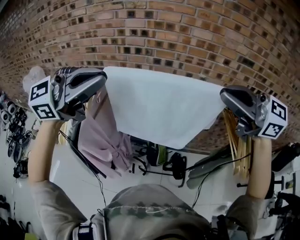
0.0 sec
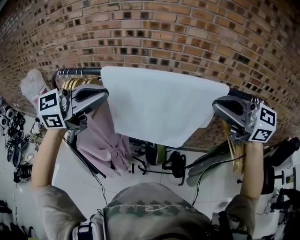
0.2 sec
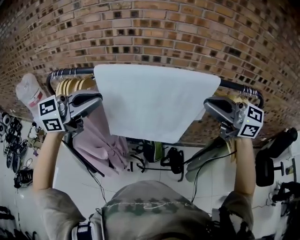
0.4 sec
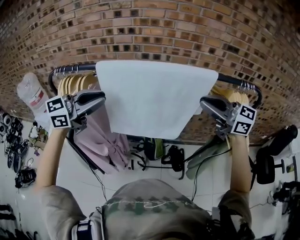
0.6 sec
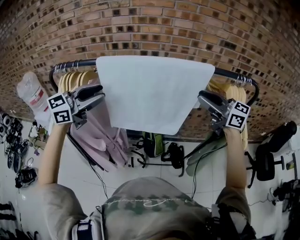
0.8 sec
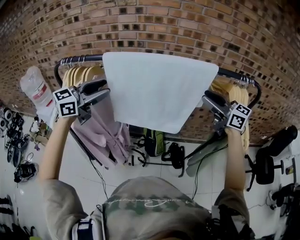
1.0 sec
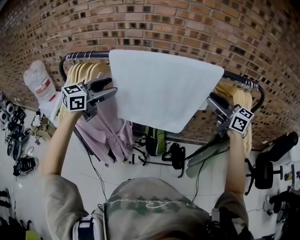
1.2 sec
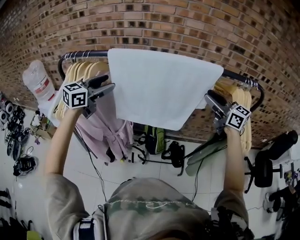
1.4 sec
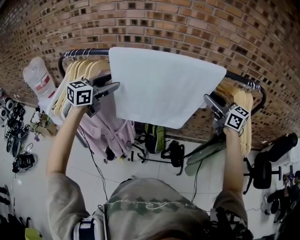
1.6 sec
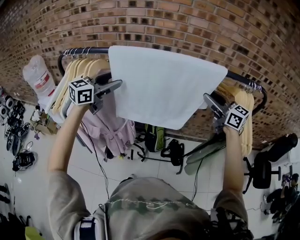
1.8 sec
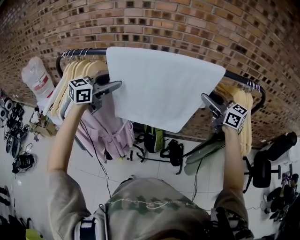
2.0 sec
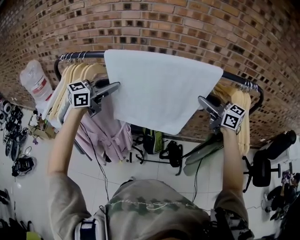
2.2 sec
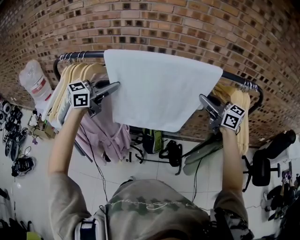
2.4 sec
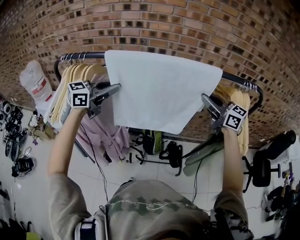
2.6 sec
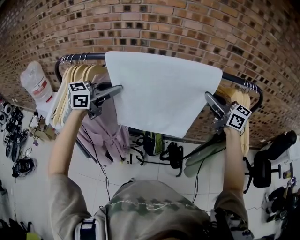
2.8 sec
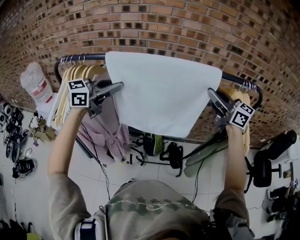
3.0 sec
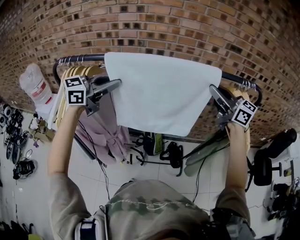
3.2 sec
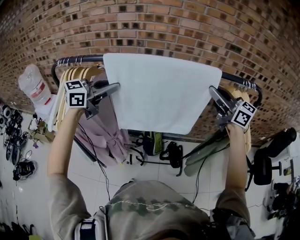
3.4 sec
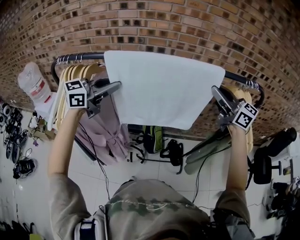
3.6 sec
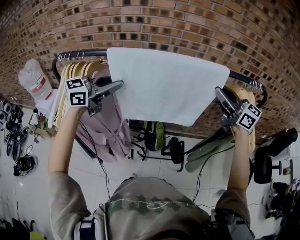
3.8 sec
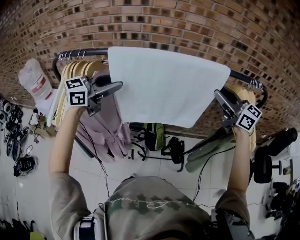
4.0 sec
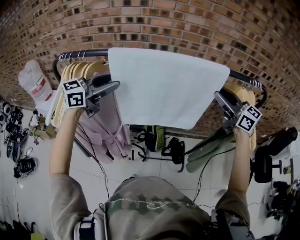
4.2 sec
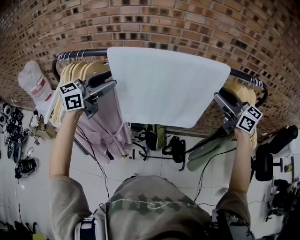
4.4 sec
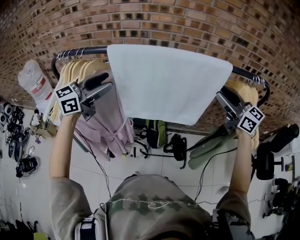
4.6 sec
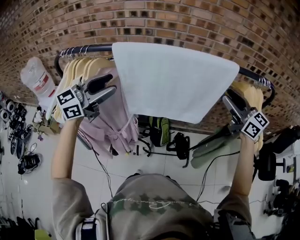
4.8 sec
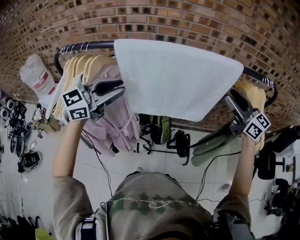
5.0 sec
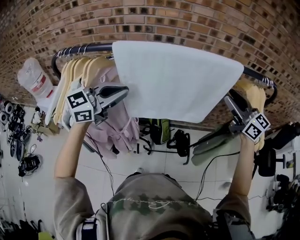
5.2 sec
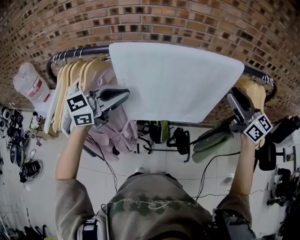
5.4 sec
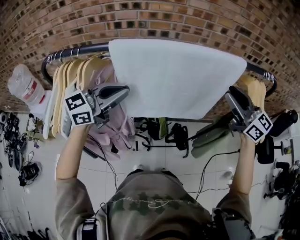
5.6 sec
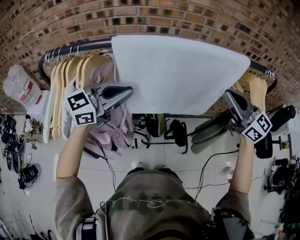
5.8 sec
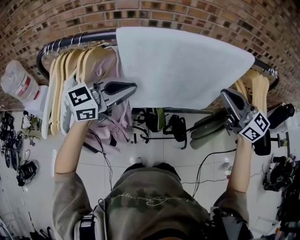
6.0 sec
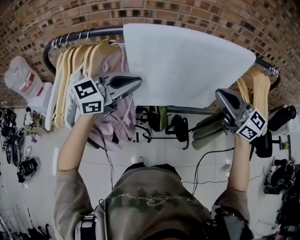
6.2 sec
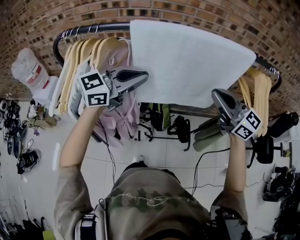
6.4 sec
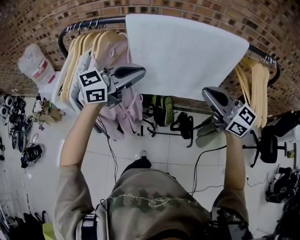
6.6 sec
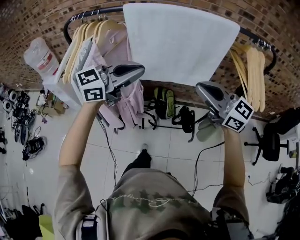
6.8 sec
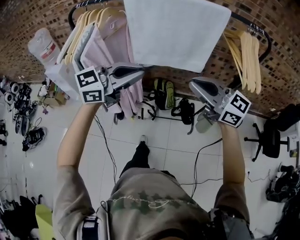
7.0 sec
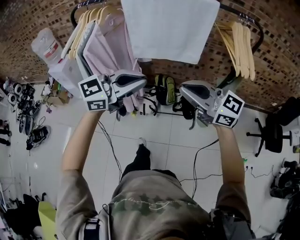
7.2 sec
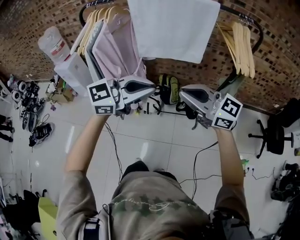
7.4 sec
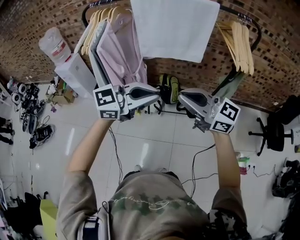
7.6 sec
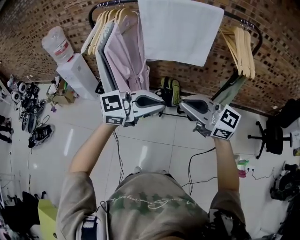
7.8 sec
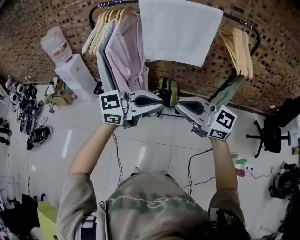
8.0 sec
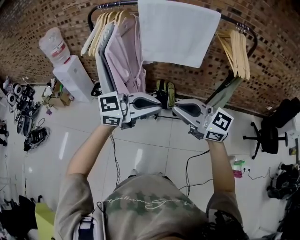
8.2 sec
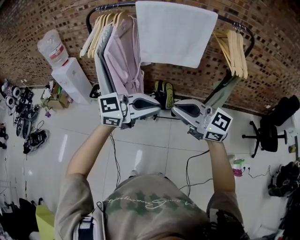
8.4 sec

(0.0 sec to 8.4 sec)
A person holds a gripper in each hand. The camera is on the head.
0.0 sec - 1.4 sec: Both grippers move downward, roughly 20 cm. The left gripper rotates about 30 degrees, and opens up; the right gripper changes its angle by some 30 degrees.
1.4 sec - 2.8 sec: The left gripper travels to the right by approximately 5 cm, and closes up.
2.8 sec - 4.2 sec: The left gripper opens up.
4.2 sec - 5.6 sec: The left gripper closes.
5.6 sec - 7.0 sec: The right gripper ends up about 25 cm from where it was, and turns by about 30 degrees; the left gripper changes place by roughly 25 cm.
7.0 sec - 8.4 sec: The left gripper moves some 20 cm. Meanwhile the right gripper moves approximately 20 cm.

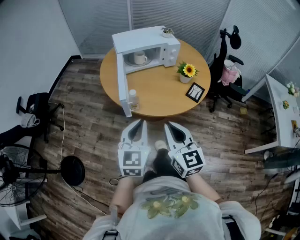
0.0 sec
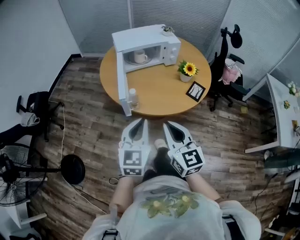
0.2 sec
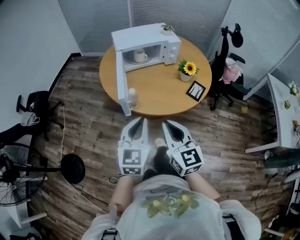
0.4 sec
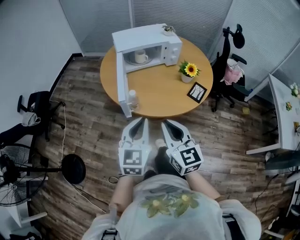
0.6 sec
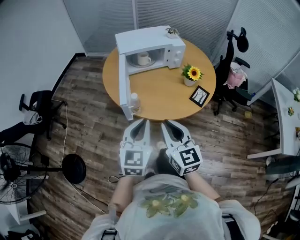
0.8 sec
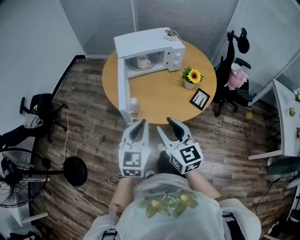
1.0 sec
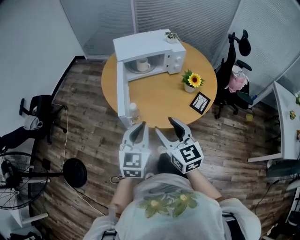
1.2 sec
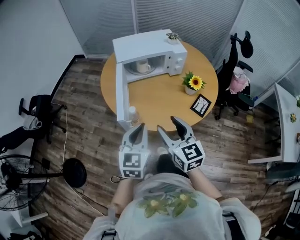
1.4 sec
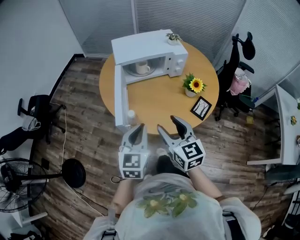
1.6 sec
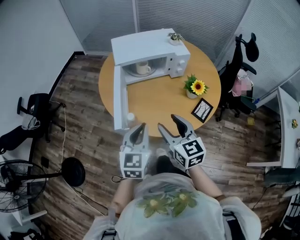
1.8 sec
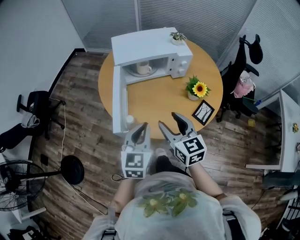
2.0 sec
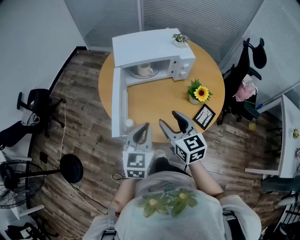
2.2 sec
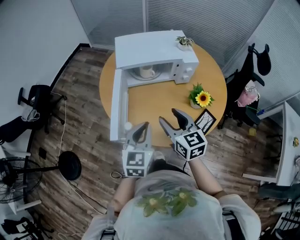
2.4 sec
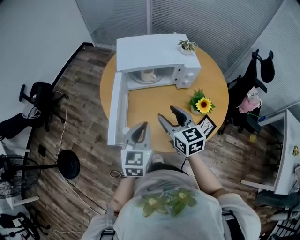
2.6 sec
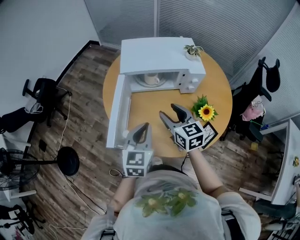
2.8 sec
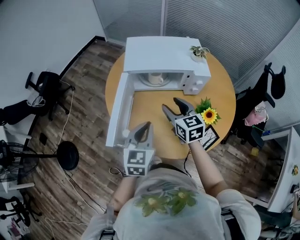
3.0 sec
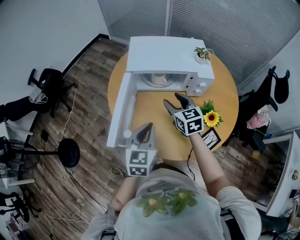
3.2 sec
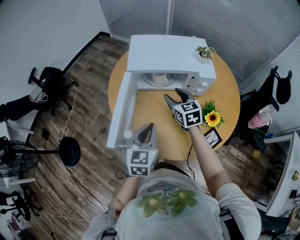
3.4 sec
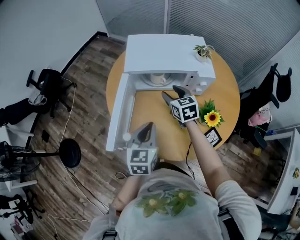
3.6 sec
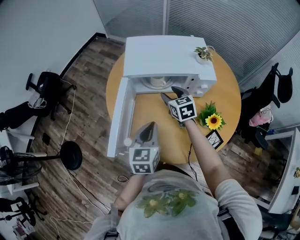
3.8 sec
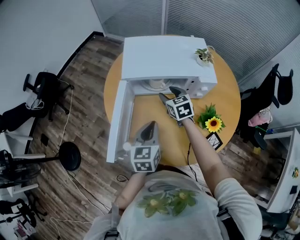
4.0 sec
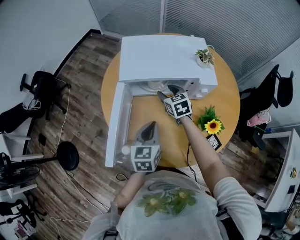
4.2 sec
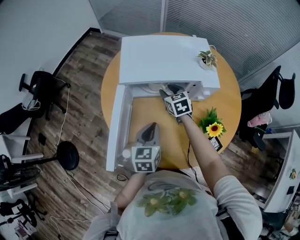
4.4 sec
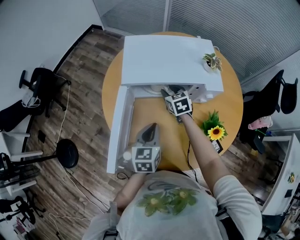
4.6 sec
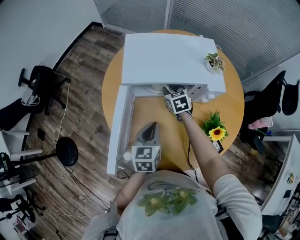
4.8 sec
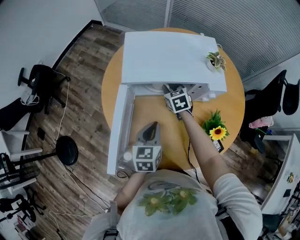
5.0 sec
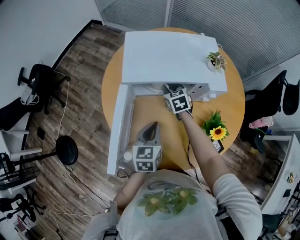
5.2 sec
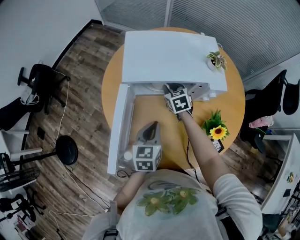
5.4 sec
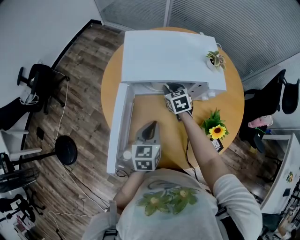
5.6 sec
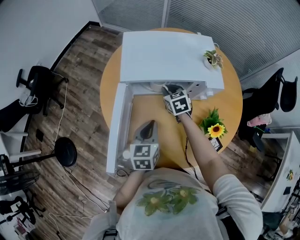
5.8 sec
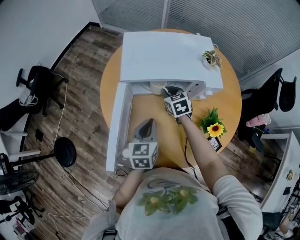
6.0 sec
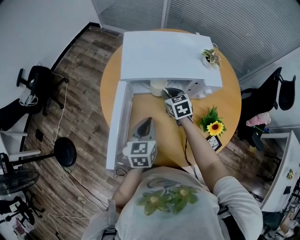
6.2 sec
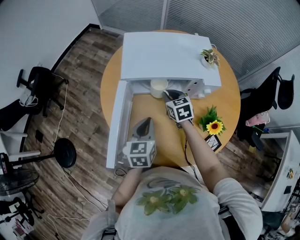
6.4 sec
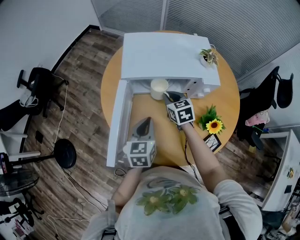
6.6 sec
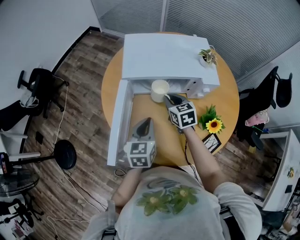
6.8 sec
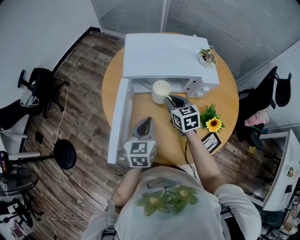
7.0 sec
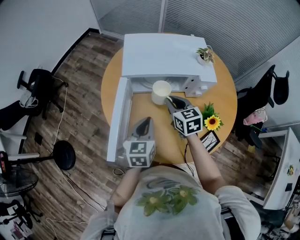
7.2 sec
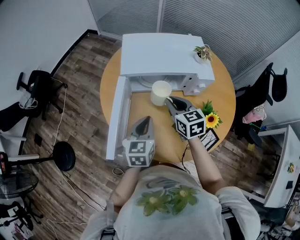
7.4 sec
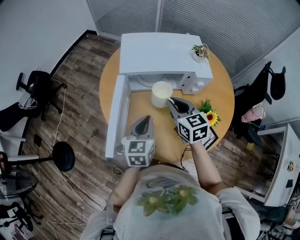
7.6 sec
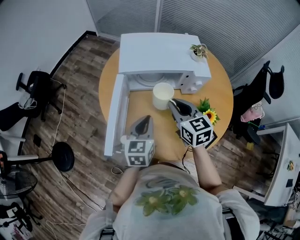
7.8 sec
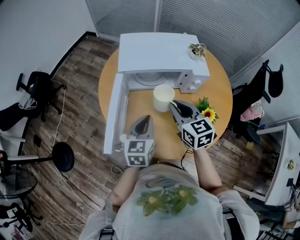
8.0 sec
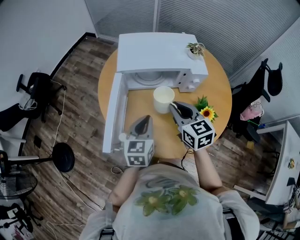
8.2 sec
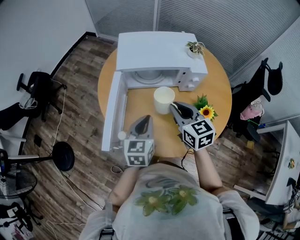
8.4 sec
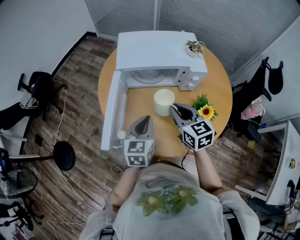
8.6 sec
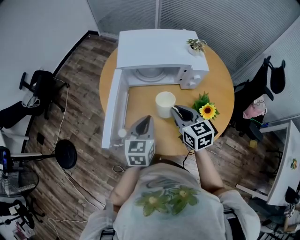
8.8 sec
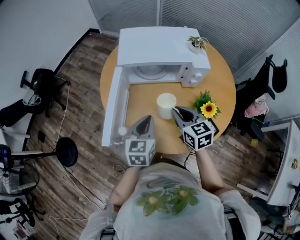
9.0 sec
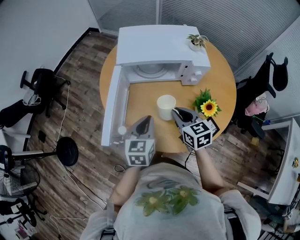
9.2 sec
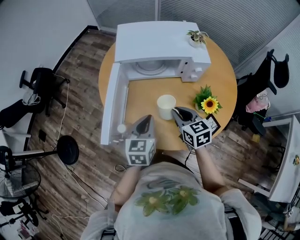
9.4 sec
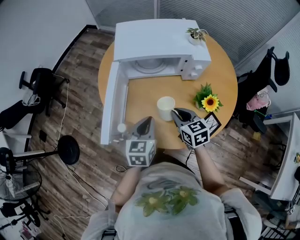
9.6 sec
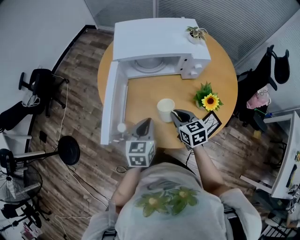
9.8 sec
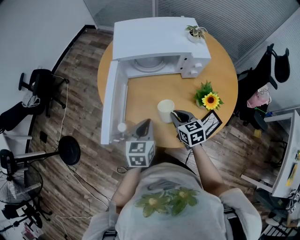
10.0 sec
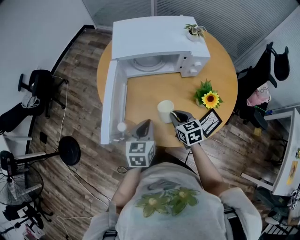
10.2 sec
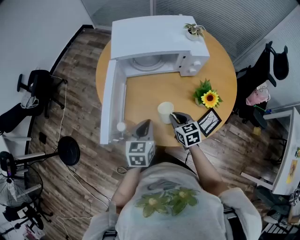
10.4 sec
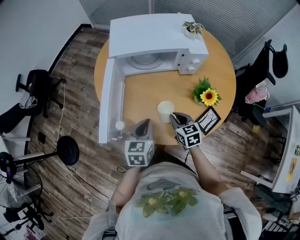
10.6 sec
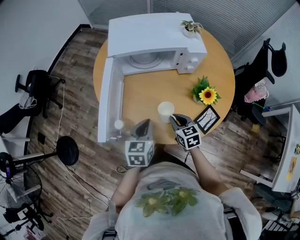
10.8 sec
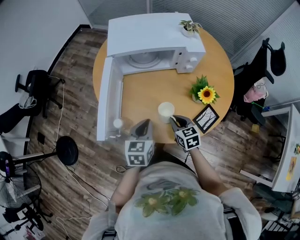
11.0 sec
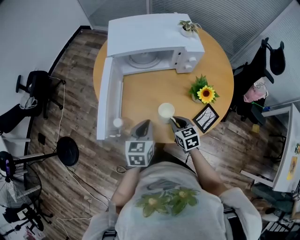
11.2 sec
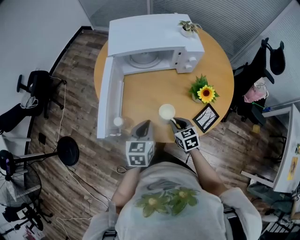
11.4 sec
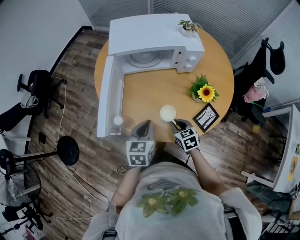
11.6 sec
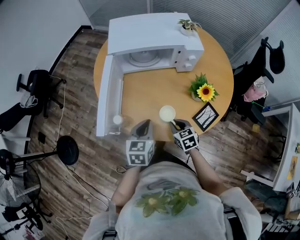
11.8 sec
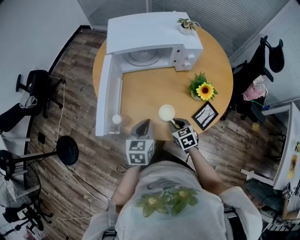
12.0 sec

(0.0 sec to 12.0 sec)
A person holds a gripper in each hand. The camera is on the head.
0.0 sec - 1.6 sec: The grippers both shift forward by about 15 cm. The right gripper opens.
1.6 sec - 3.0 sec: The left gripper heads forward and to the right, covering approximately 15 cm. Meanwhile the right gripper travels forward by some 25 cm.
3.0 sec - 4.4 sec: The left gripper moves forward and downward, approximately 10 cm. Meanwhile the right gripper heads forward and downward, covering roughly 20 cm.
4.4 sec - 6.0 sec: The right gripper closes.
6.0 sec - 7.6 sec: The right gripper travels backward and upward by roughly 20 cm. The left gripper changes place by roughly 5 cm.
7.6 sec - 9.0 sec: The right gripper travels backward by some 10 cm.
9.0 sec - 10.4 sec: The left gripper travels downward by approximately 5 cm, while the right gripper moves downward, some 15 cm.
10.4 sec - 12.0 sec: The right gripper shifts roughly 5 cm backward.

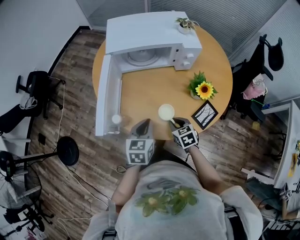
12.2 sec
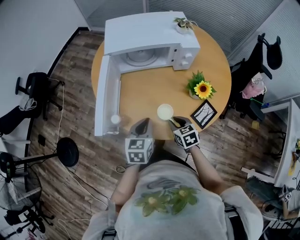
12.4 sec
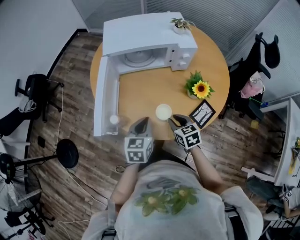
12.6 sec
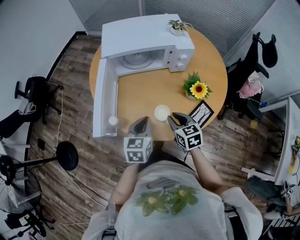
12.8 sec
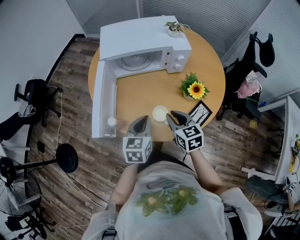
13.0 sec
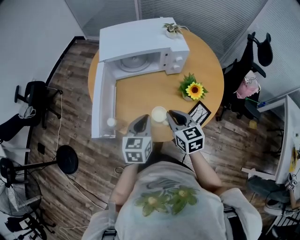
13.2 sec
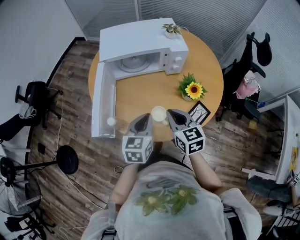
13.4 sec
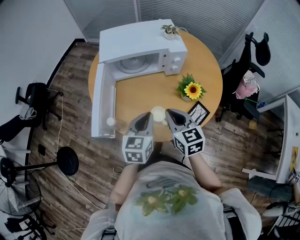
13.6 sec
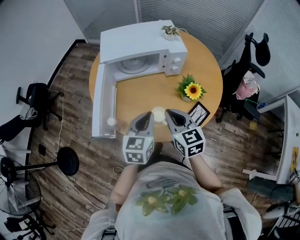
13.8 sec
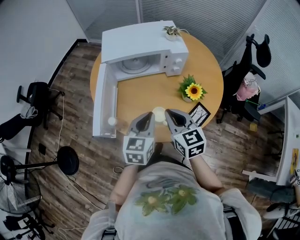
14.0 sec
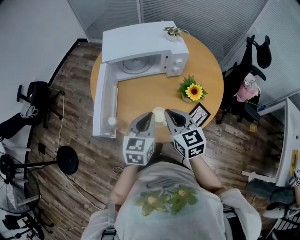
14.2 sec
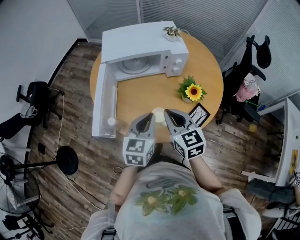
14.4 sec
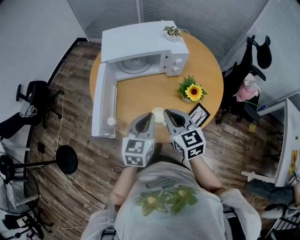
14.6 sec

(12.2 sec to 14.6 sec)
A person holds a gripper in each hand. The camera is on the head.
12.2 sec - 13.4 sec: The right gripper heads upward, covering some 20 cm, and rotates approximately 30 degrees. Meanwhile the left gripper goes roughly 5 cm upward.
13.4 sec - 14.6 sec: The grippers stay close to where they were, moving slightly.

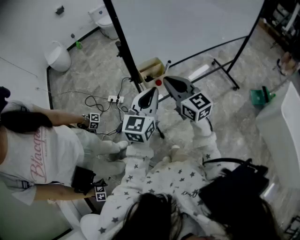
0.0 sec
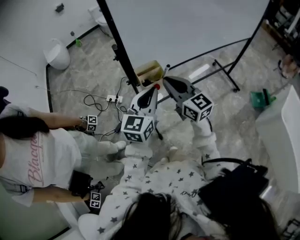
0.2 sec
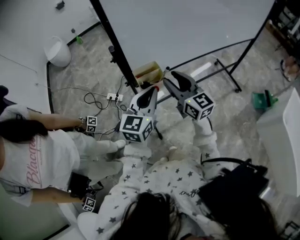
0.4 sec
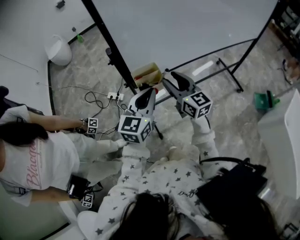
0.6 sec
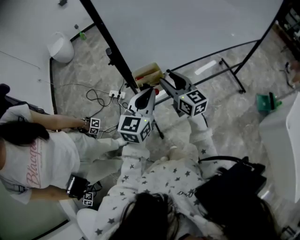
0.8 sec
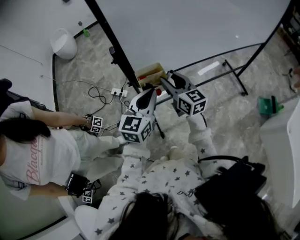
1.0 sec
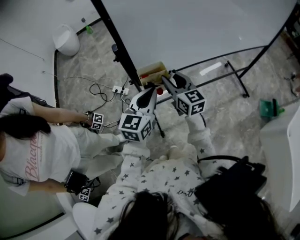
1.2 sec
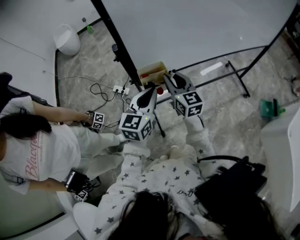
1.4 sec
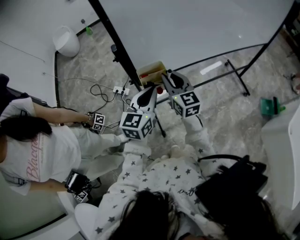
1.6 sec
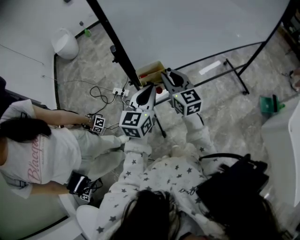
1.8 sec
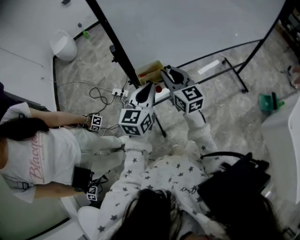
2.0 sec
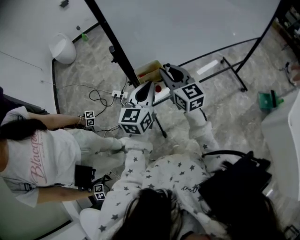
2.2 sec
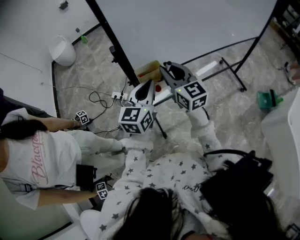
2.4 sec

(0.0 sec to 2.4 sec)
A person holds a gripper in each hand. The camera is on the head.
0.0 sec - 1.2 sec: The left gripper moves roughly 5 cm, while the right gripper is displaced downward by roughly 5 cm, and opens up.
1.2 sec - 2.4 sec: The right gripper is displaced upward by roughly 5 cm.
